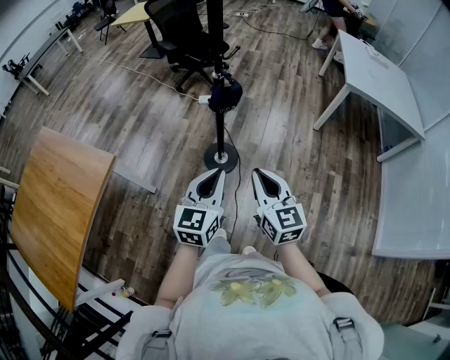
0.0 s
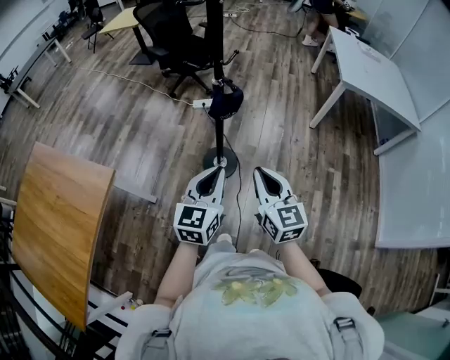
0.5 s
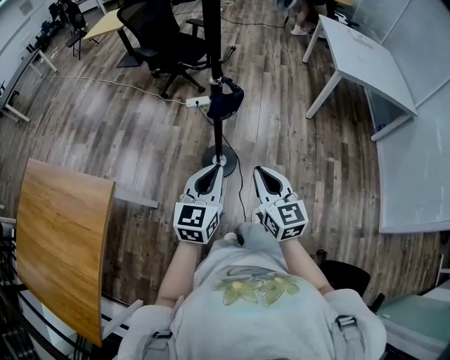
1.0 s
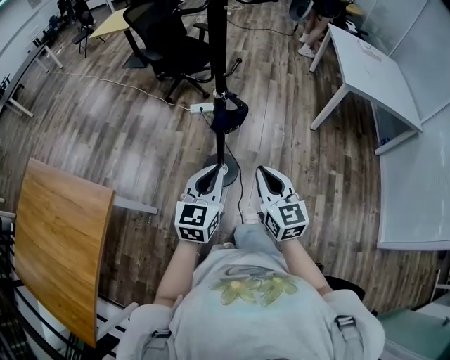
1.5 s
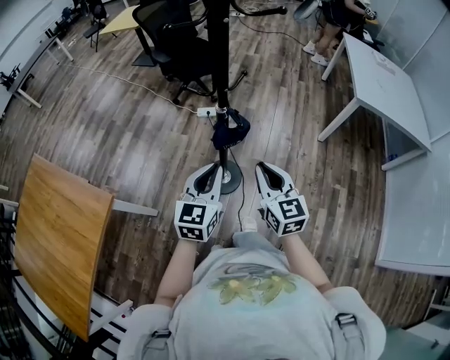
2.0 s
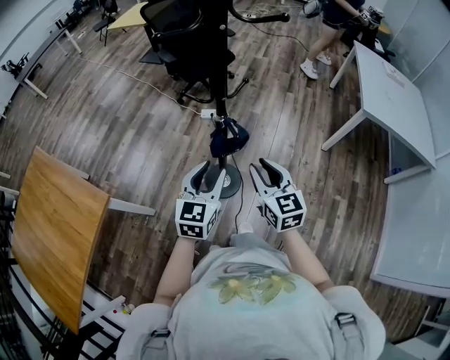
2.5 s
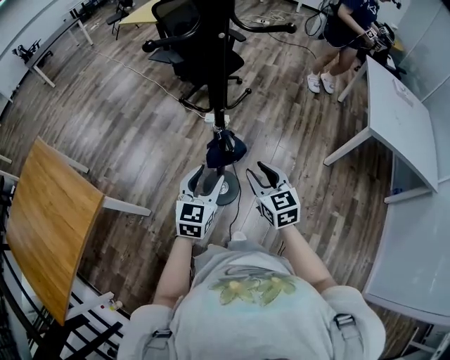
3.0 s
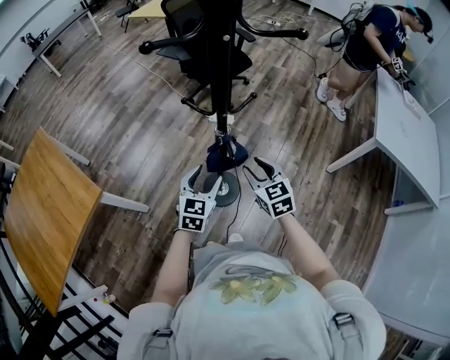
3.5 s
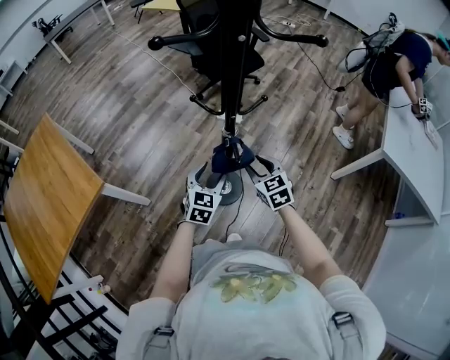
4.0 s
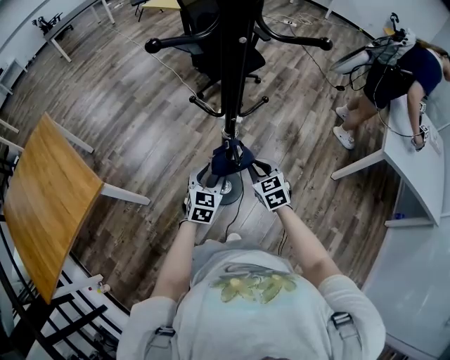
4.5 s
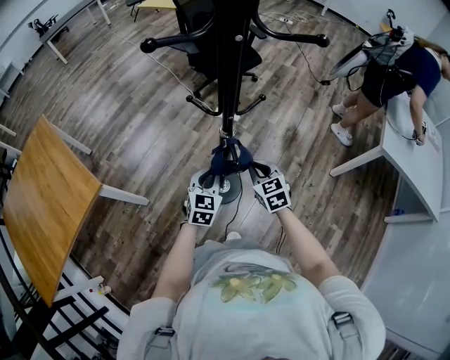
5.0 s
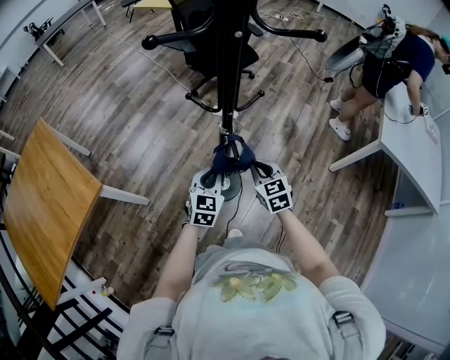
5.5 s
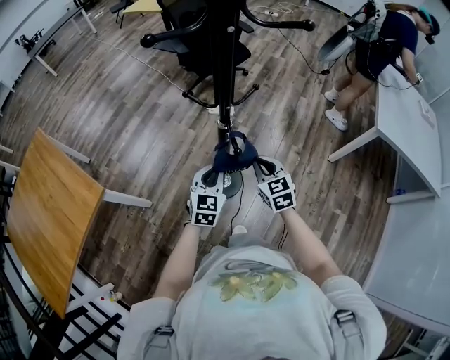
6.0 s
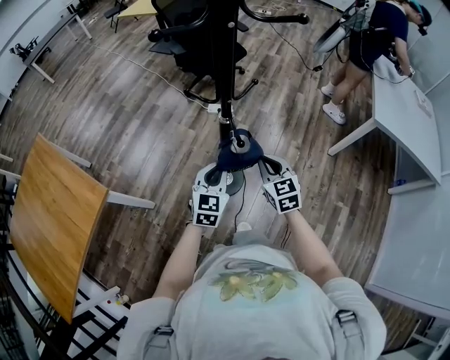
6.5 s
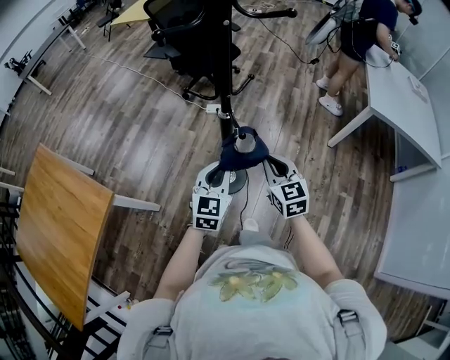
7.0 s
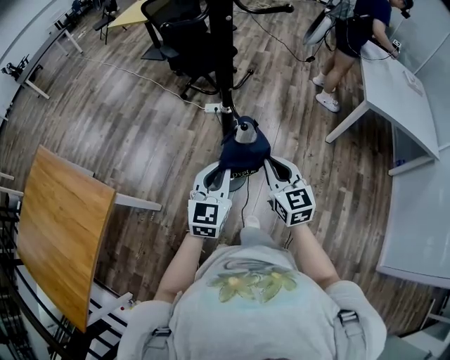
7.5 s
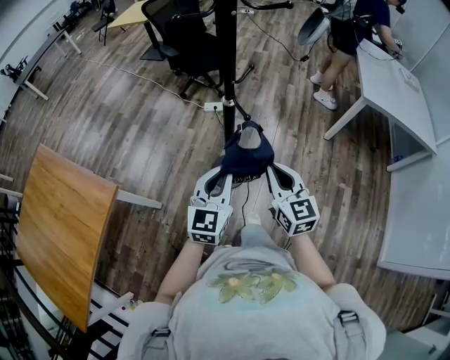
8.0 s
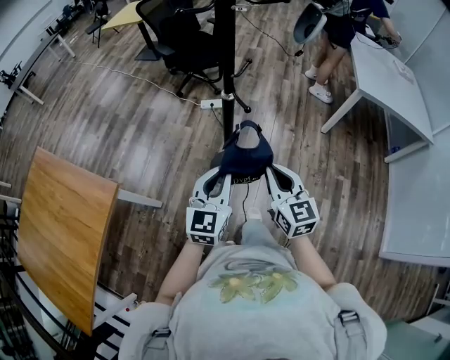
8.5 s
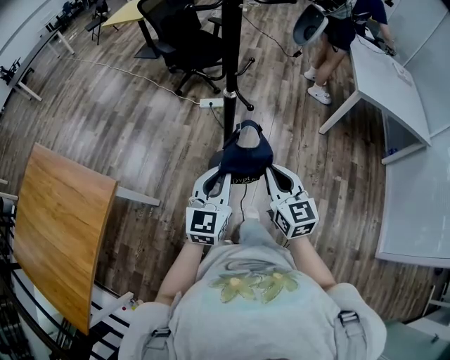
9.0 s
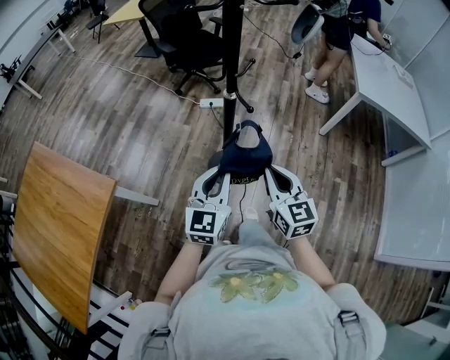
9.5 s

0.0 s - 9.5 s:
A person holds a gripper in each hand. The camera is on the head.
0.0 s - 2.0 s: Both grippers travel together forward, roughly 20 cm.
2.0 s - 4.0 s: The left gripper heads downward and forward, covering some 20 cm, changes its angle by about 20 degrees, and opens its fingers; the right gripper shifts roughly 25 cm forward and downward, rotates about 40 degrees, and opens up.
4.0 s - 5.5 s: The right gripper closes its fingers, while the left gripper closes.
5.5 s - 7.5 s: The two grippers go roughly 20 cm upward and backward. The right gripper rotates roughly 20 degrees.
7.5 s - 9.5 s: Both grippers travel together backward, approximately 10 cm.

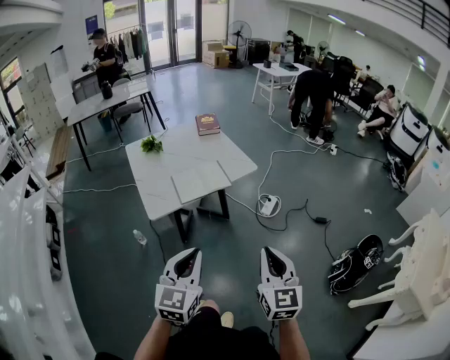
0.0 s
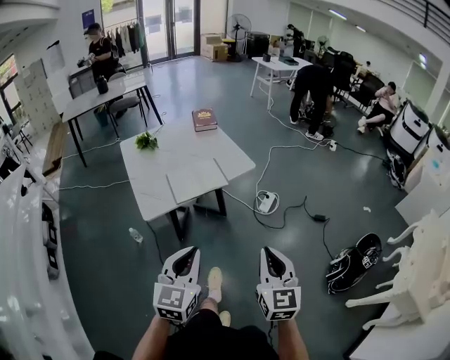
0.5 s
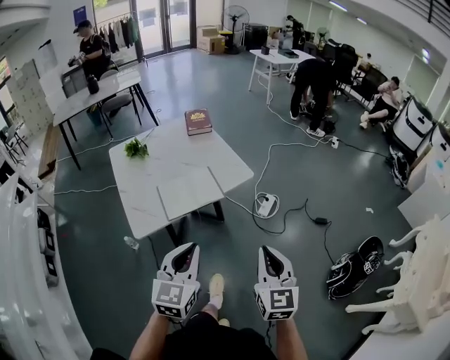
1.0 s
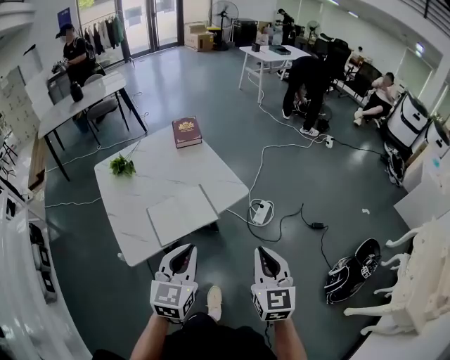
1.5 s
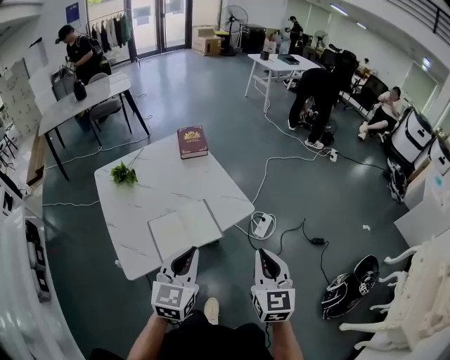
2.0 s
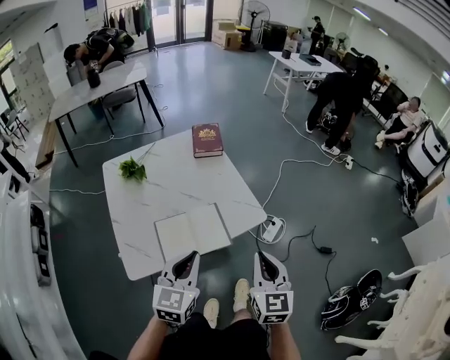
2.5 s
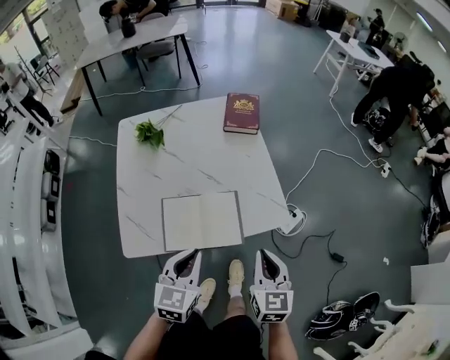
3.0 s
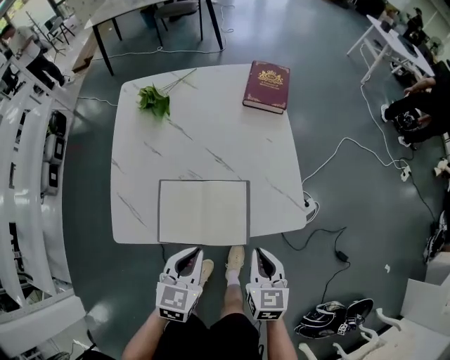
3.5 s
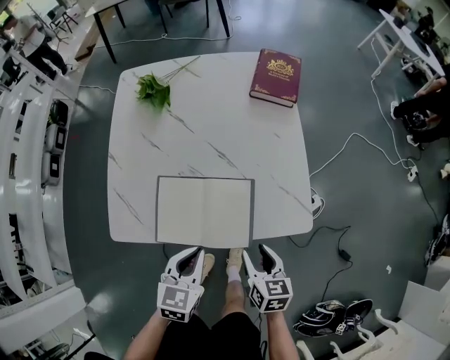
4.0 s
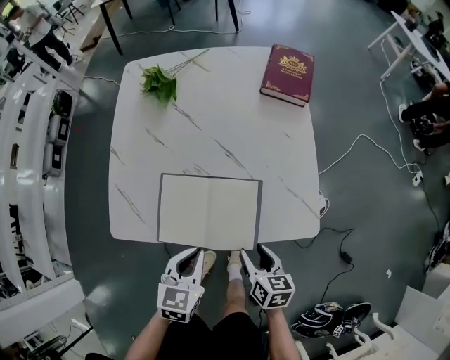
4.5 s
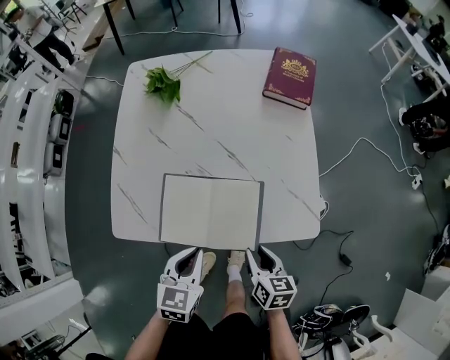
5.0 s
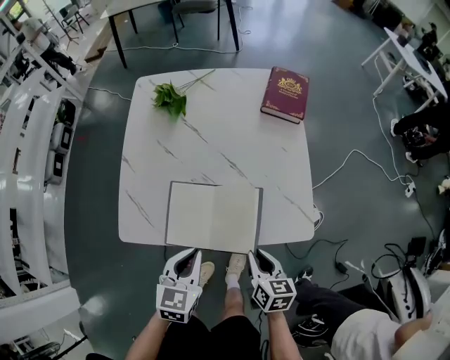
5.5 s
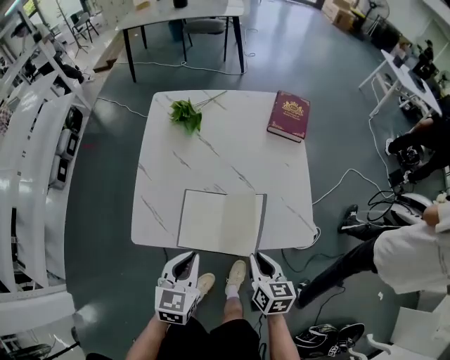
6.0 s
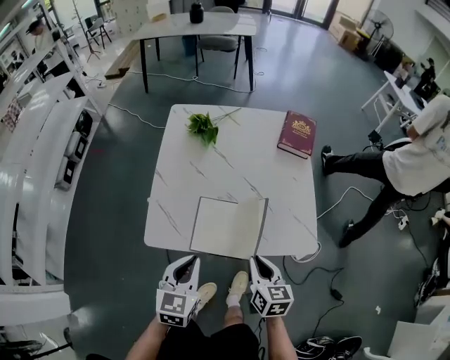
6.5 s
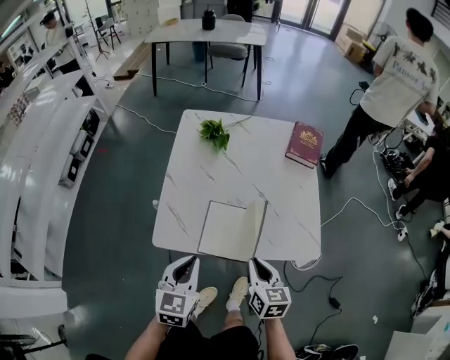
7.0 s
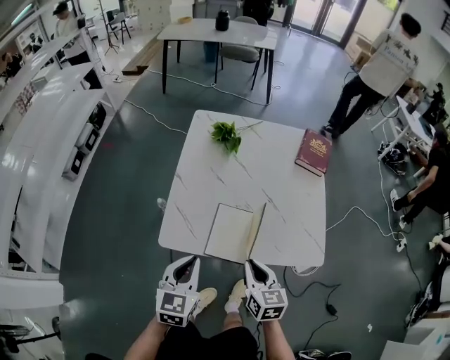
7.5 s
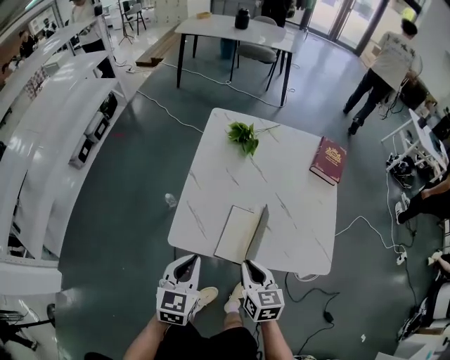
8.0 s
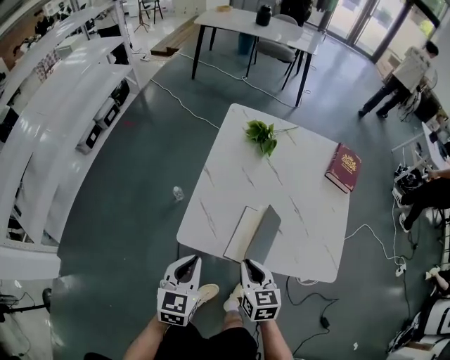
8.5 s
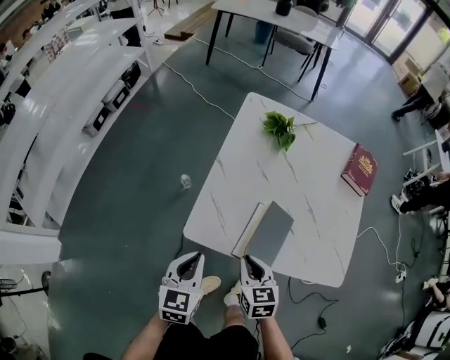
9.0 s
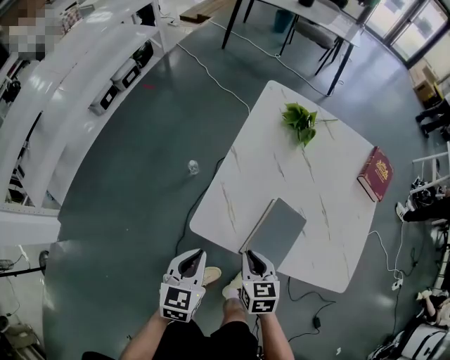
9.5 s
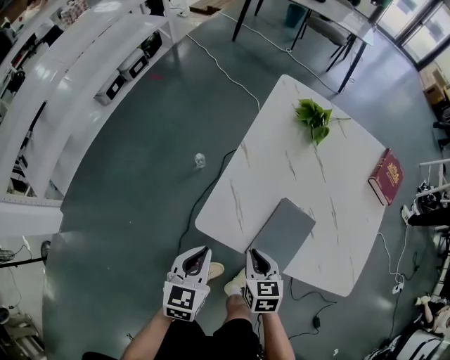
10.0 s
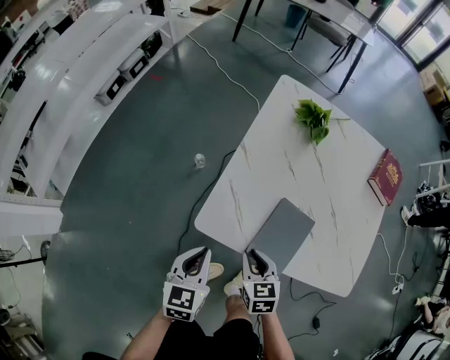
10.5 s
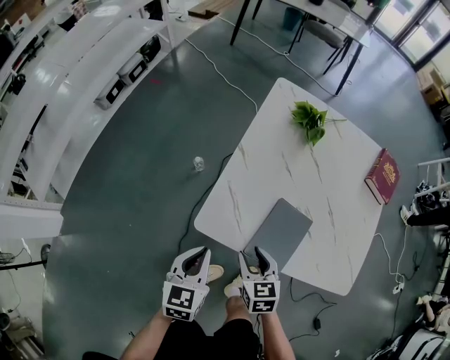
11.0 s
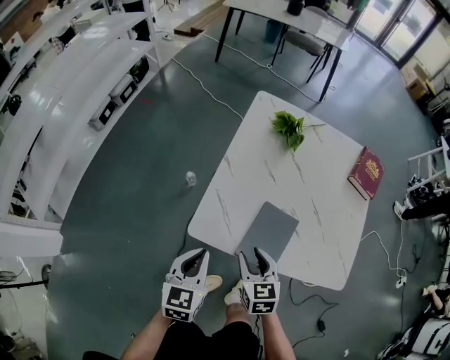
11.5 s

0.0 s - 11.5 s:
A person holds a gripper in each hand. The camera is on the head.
0.0 s - 2.0 s: Both grippers travel together forward, roughly 40 cm.
2.0 s - 4.0 s: Both grippers move downward, some 30 cm. The right gripper turns by about 50 degrees, and opens up. Meanwhile the left gripper changes its angle by about 40 degrees.
4.0 s - 6.0 s: The right gripper heads upward and to the left, covering about 10 cm, and closes its fingers. The left gripper travels to the left and upward by about 10 cm.
6.0 s - 7.5 s: Both grippers move to the left and upward, about 15 cm.
7.5 s - 9.5 s: The right gripper goes approximately 20 cm to the left, downward and forward, and turns by some 20 degrees, while the left gripper shifts approximately 15 cm to the left and downward.
9.5 s - 11.5 s: The right gripper opens its fingers.

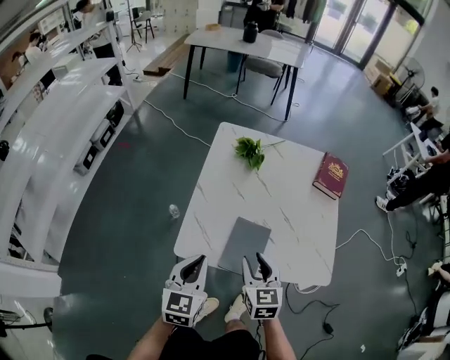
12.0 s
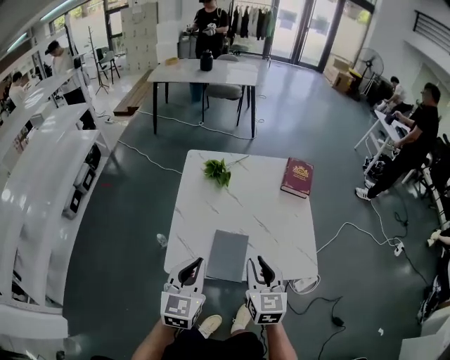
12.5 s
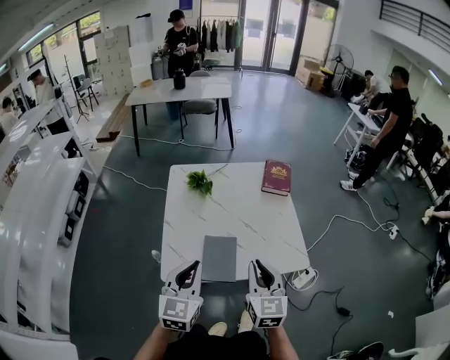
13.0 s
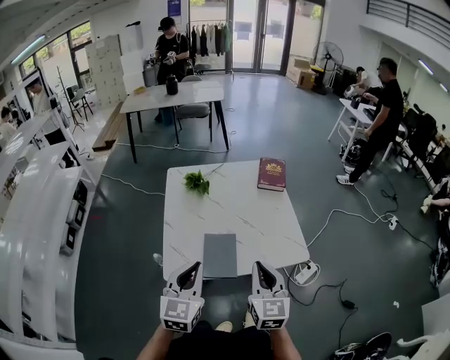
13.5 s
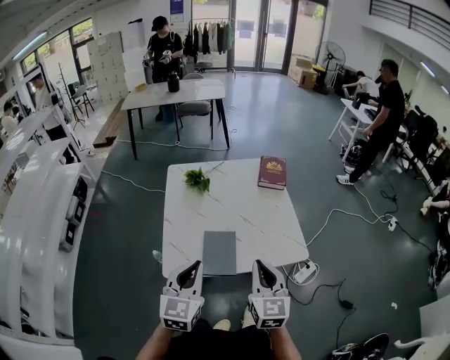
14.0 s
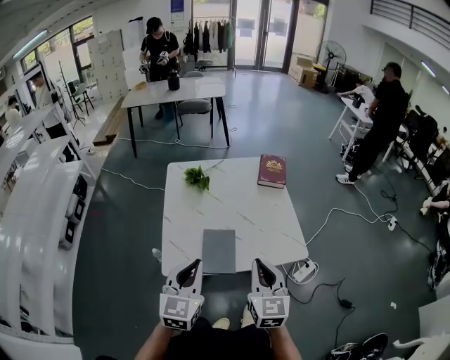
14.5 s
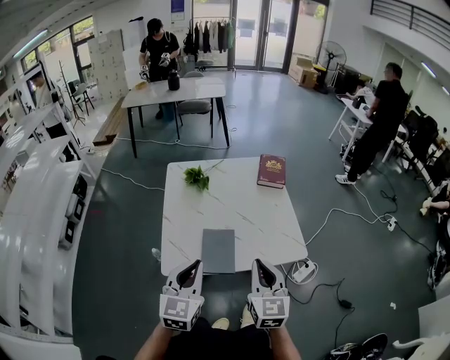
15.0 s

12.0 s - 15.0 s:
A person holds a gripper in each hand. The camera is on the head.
12.0 s - 13.5 s: Both grippers travel together upward, to the right and backward, roughly 20 cm. The right gripper swivels some 30 degrees, and closes; the left gripper rotates about 20 degrees.
13.5 s - 15.0 s: The two grippers keep their place.

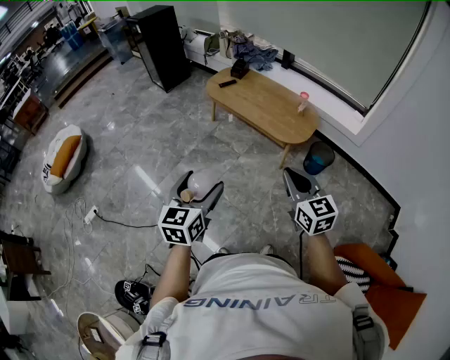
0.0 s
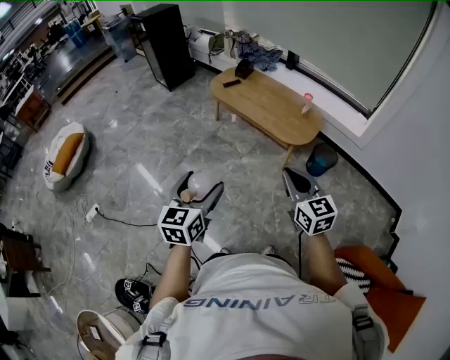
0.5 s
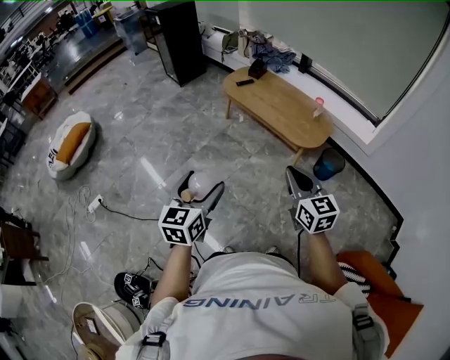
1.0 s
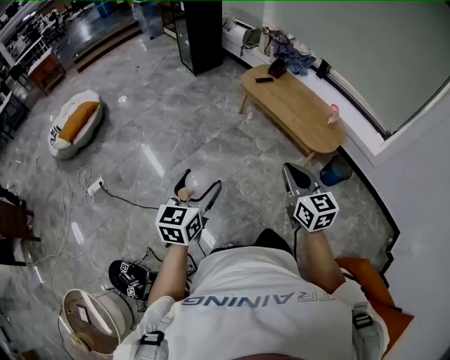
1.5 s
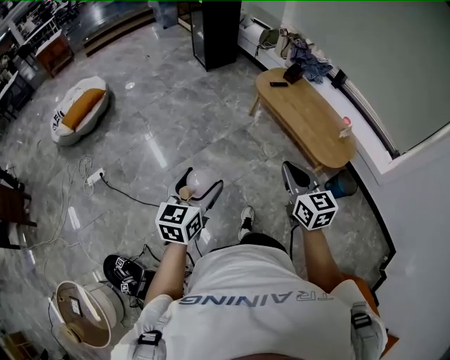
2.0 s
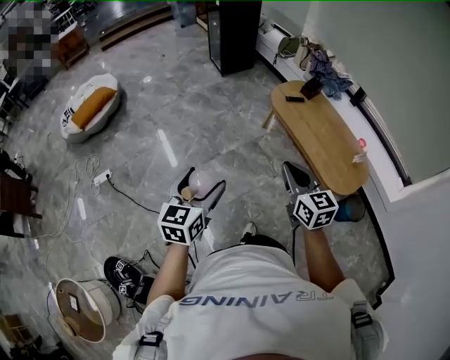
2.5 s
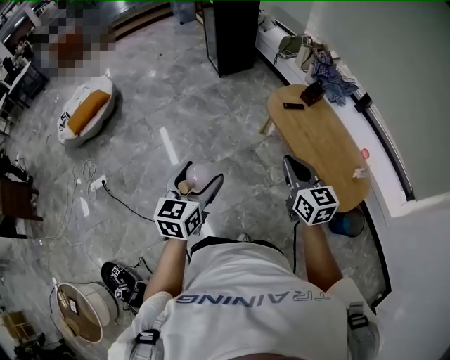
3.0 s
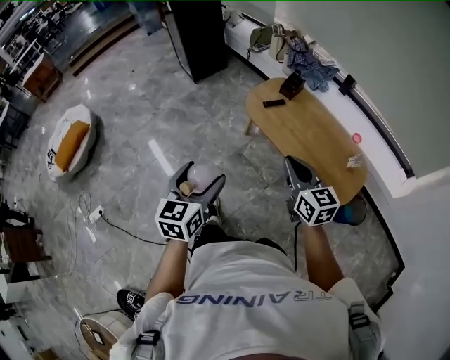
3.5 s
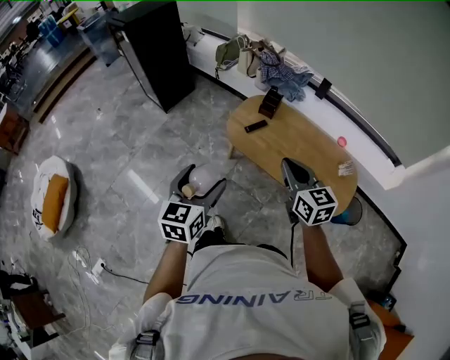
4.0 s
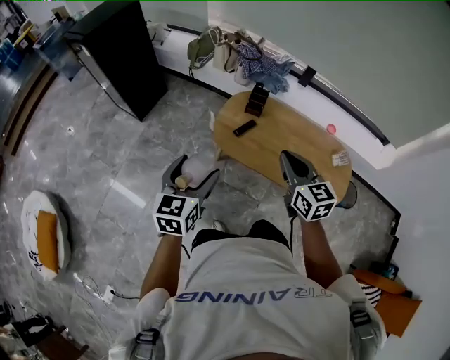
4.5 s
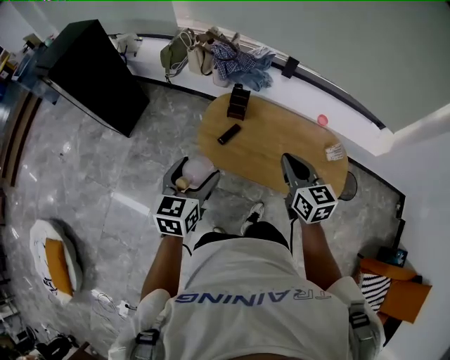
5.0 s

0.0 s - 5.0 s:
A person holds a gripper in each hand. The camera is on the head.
0.0 s - 2.5 s: The left gripper is displaced to the left and forward by about 30 cm. The right gripper moves forward and to the left, about 35 cm.
2.5 s - 5.0 s: The pair of grippers is taken some 60 cm. The right gripper rotates about 40 degrees; the left gripper turns by roughly 40 degrees.
